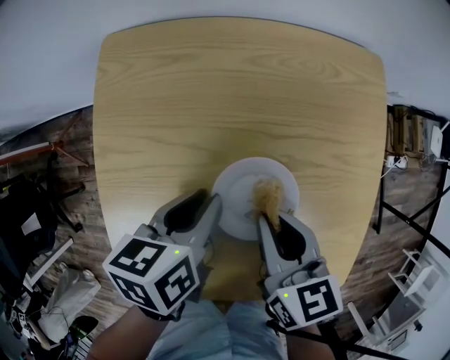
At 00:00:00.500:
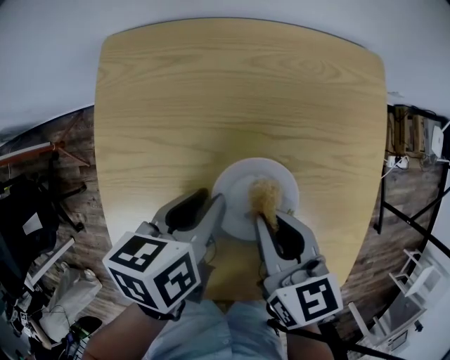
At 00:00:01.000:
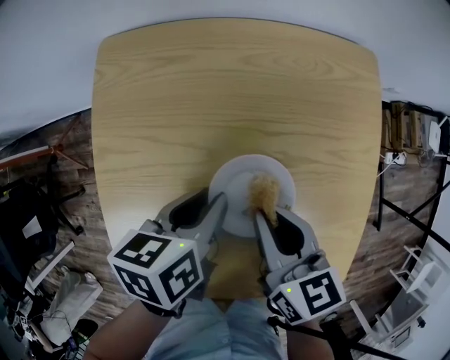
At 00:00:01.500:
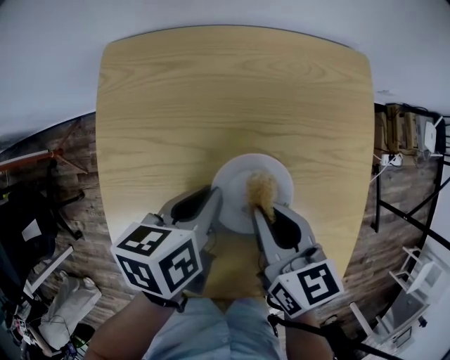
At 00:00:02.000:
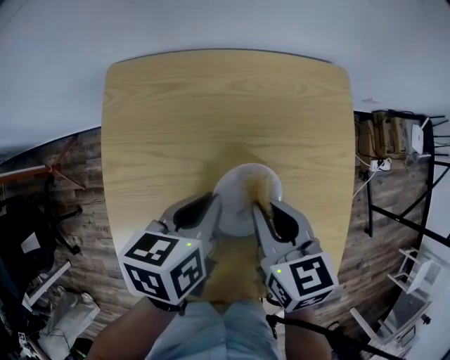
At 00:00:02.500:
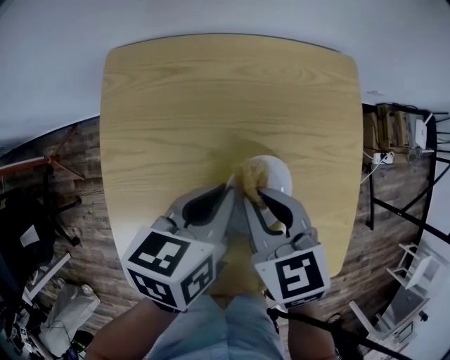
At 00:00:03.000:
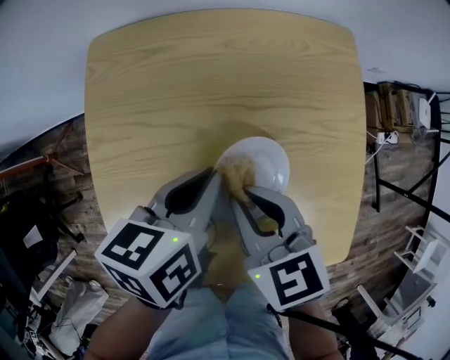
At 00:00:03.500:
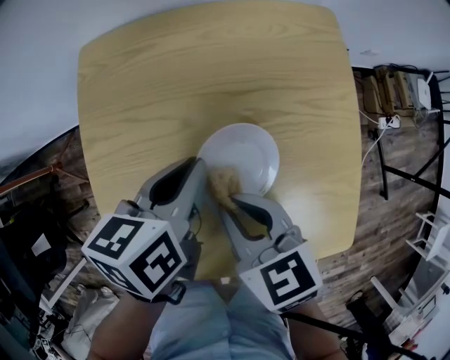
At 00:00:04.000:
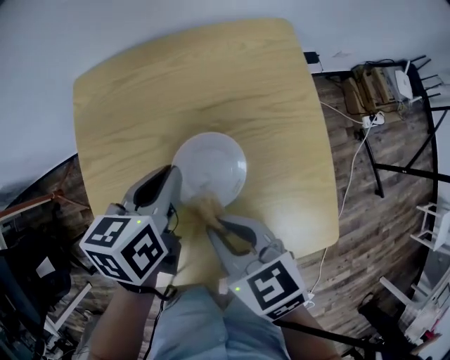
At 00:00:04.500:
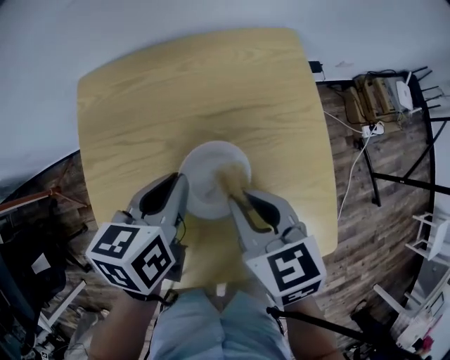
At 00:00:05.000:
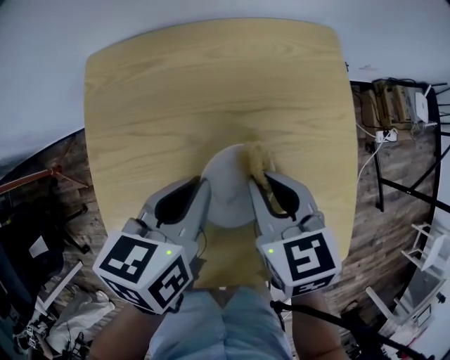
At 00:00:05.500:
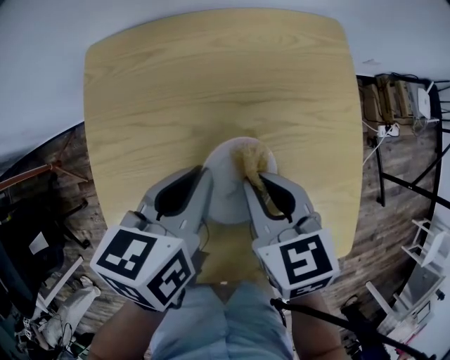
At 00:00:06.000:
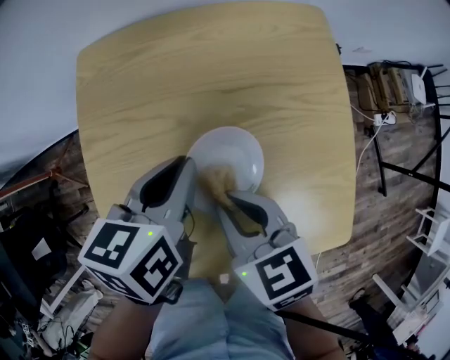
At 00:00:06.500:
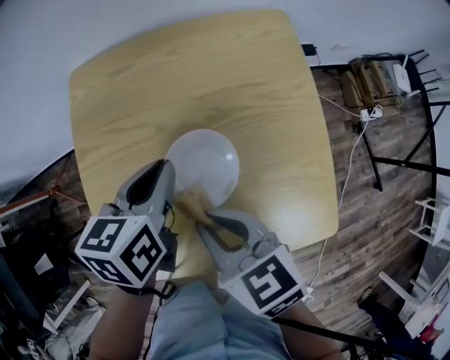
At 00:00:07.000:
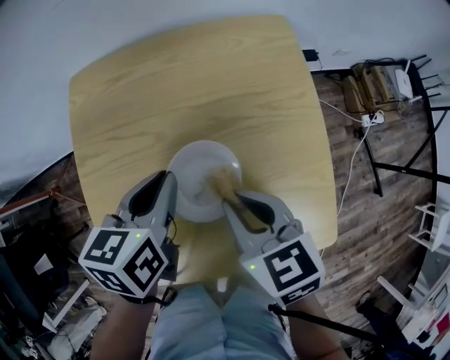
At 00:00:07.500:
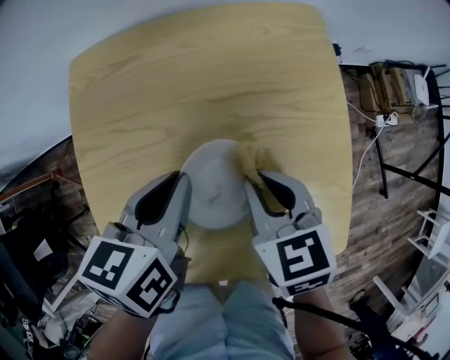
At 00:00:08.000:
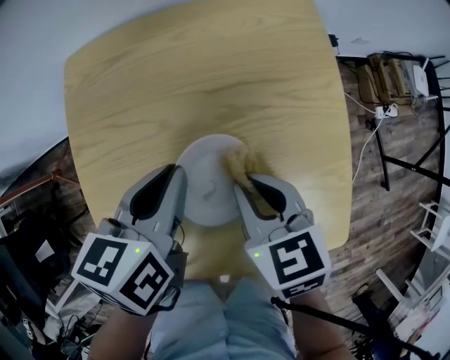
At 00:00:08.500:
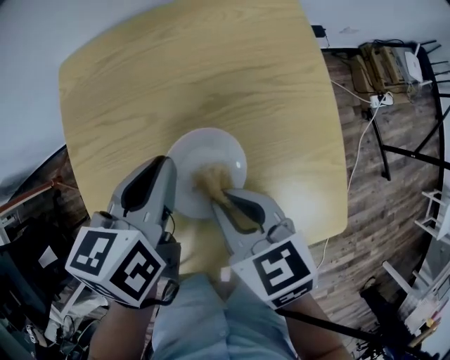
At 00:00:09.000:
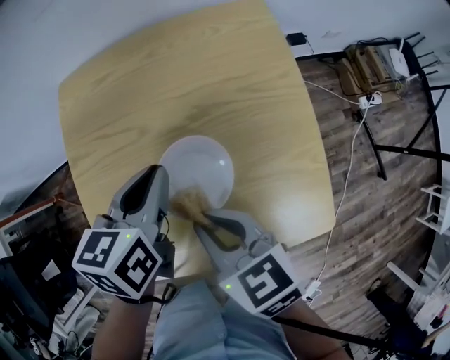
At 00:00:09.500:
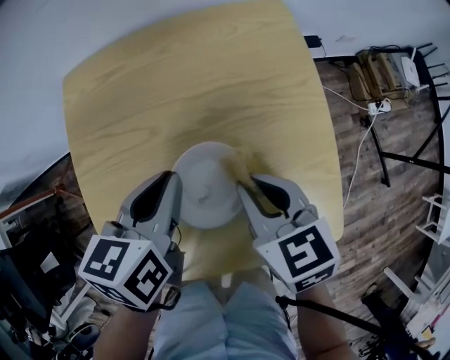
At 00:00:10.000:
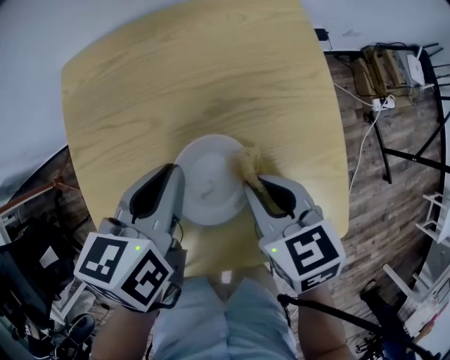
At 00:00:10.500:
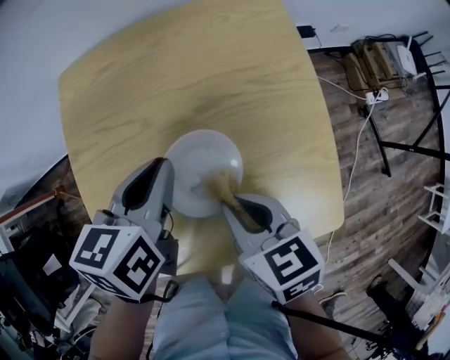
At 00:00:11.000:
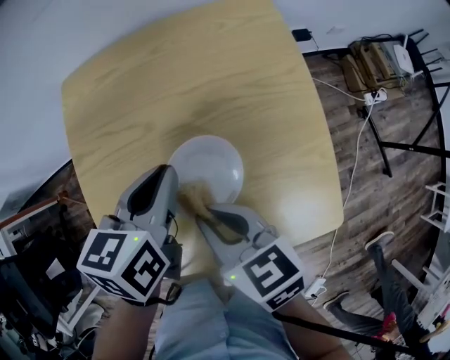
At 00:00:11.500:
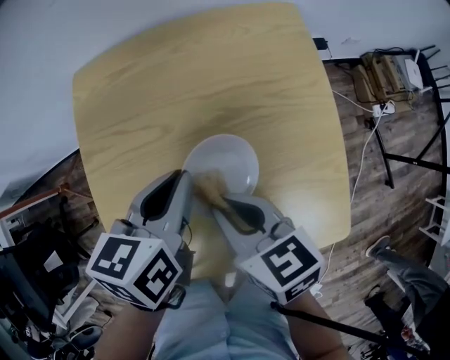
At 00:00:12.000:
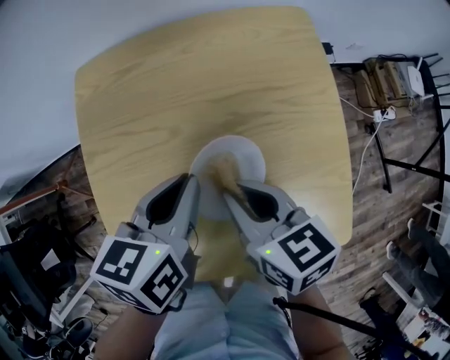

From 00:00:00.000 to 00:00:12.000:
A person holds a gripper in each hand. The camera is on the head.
From 00:00:00.000 to 00:00:02.000: The grippers stay close to where they were, moving slightly.
From 00:00:02.000 to 00:00:04.000: The right gripper shifts some 10 cm backward.
From 00:00:04.000 to 00:00:06.000: The right gripper reaches some 10 cm forward, then returns.
From 00:00:06.000 to 00:00:08.000: The right gripper shifts about 5 cm to the right, and moves some 5 cm forward and comes back.
From 00:00:10.000 to 00:00:12.000: The right gripper goes roughly 5 cm to the left.

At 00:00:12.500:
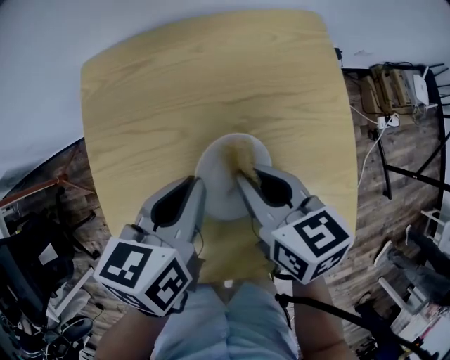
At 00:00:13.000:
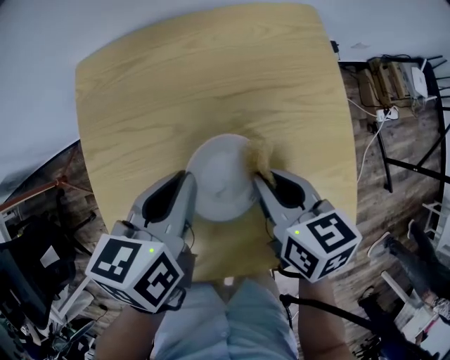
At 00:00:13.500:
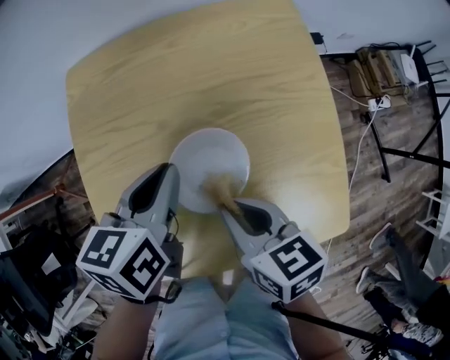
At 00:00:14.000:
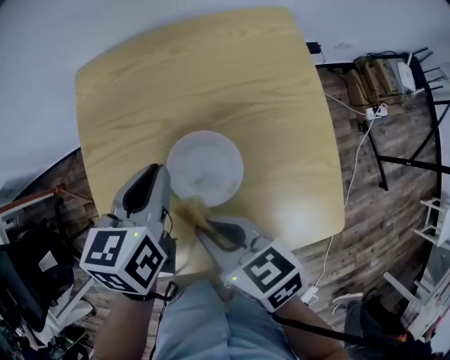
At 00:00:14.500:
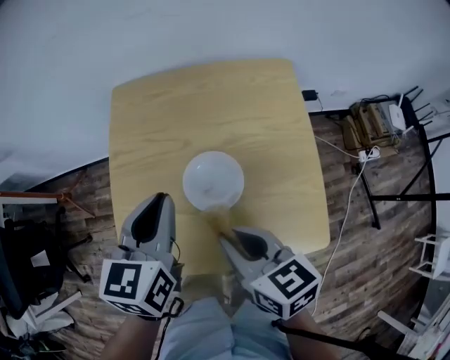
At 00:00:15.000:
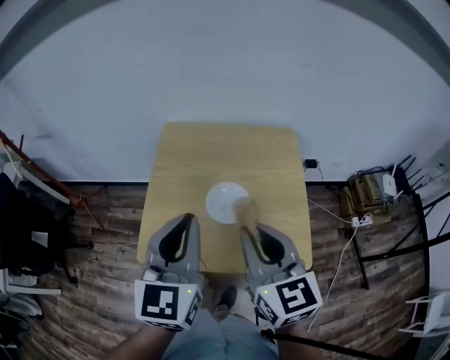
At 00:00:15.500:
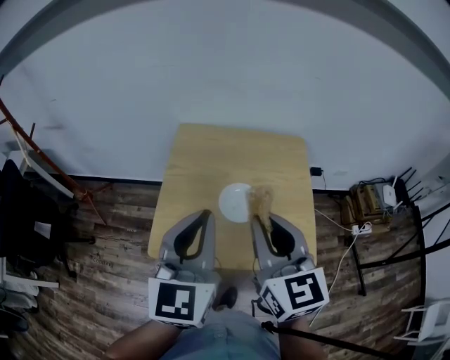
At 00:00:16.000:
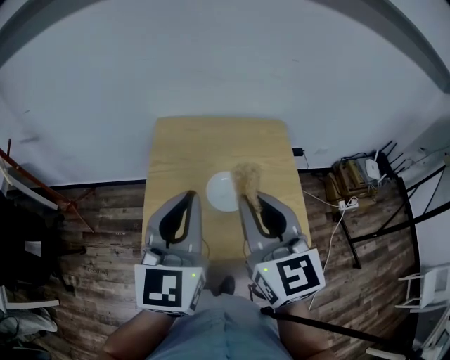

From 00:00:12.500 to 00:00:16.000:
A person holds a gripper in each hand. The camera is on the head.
From 00:00:12.500 to 00:00:14.500: The left gripper heads upward and backward, covering some 10 cm, and turns by about 20 degrees; the right gripper heads backward and upward, covering some 15 cm.
From 00:00:14.500 to 00:00:16.000: The left gripper shifts about 20 cm upward and backward, and changes its angle by some 30 degrees, while the right gripper shifts roughly 20 cm upward, and rotates some 40 degrees.

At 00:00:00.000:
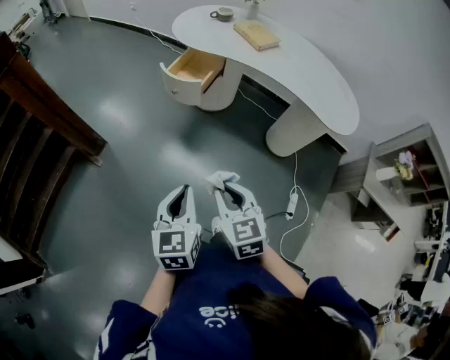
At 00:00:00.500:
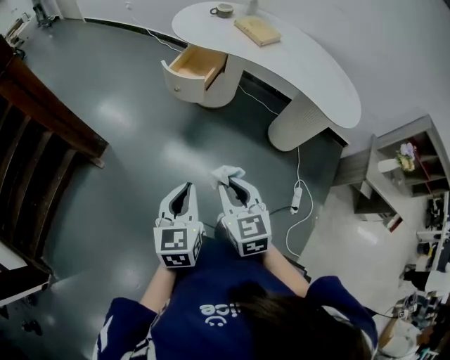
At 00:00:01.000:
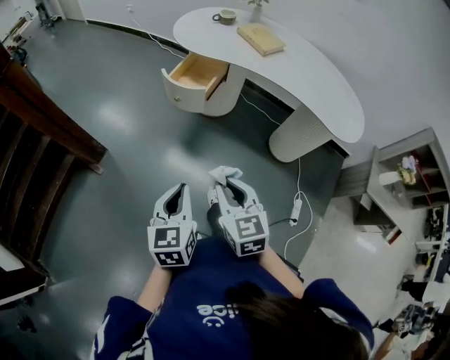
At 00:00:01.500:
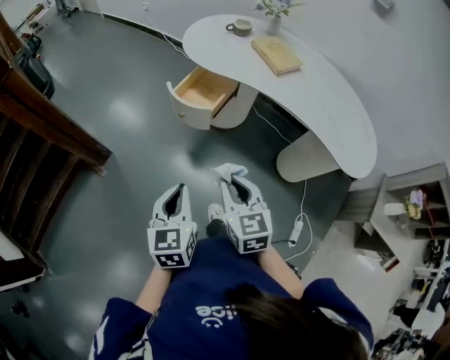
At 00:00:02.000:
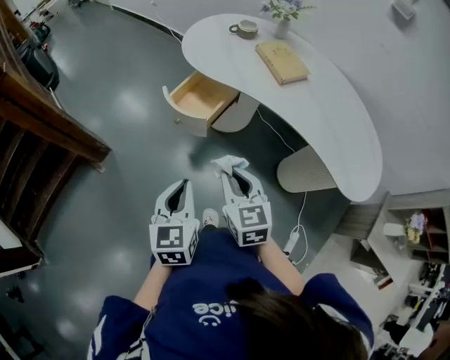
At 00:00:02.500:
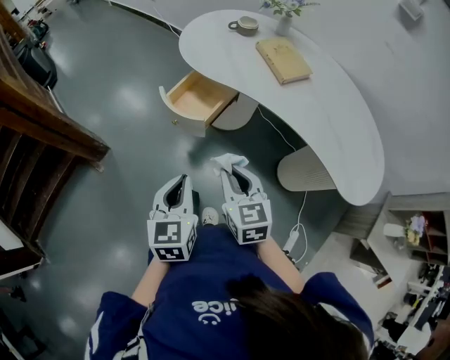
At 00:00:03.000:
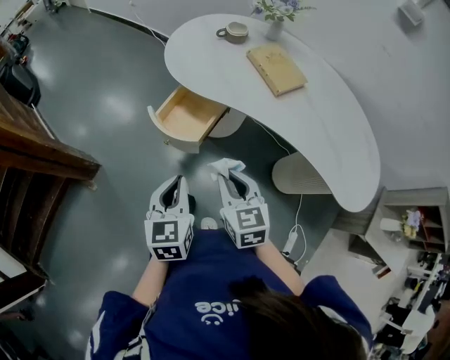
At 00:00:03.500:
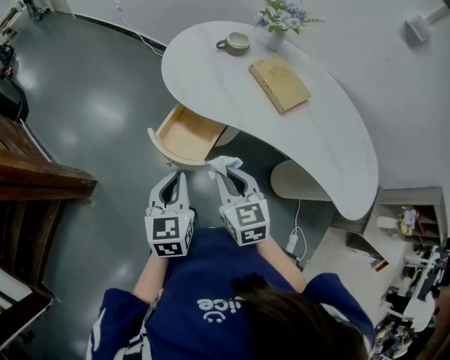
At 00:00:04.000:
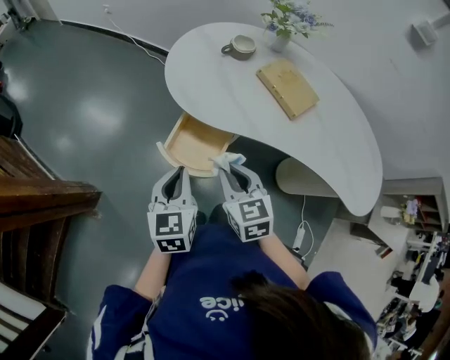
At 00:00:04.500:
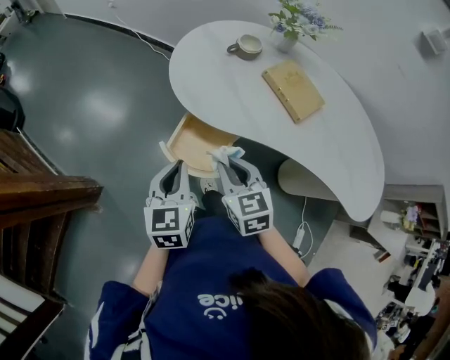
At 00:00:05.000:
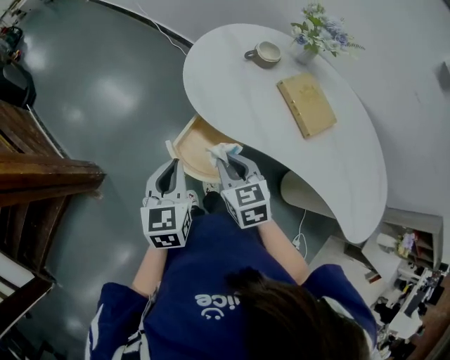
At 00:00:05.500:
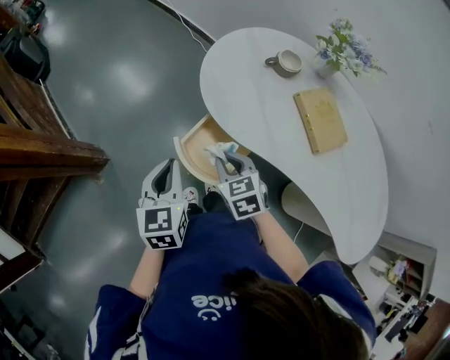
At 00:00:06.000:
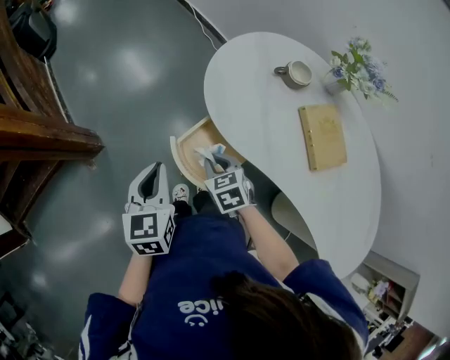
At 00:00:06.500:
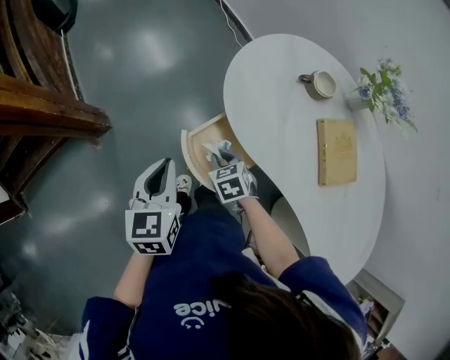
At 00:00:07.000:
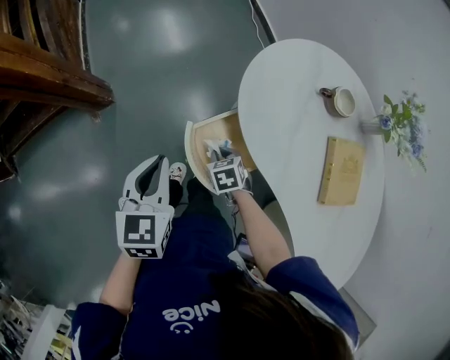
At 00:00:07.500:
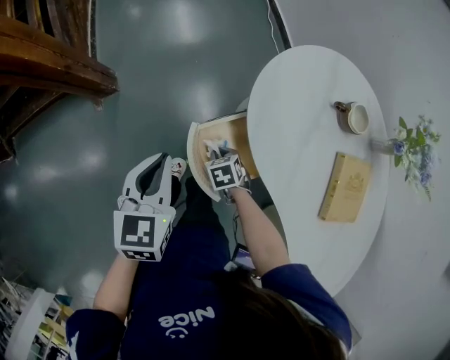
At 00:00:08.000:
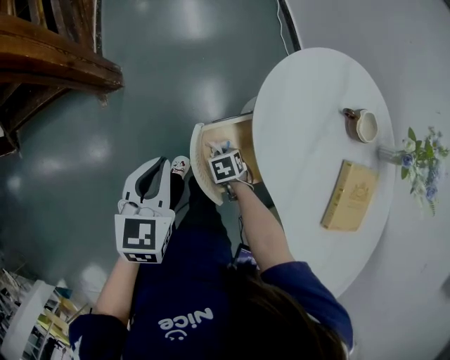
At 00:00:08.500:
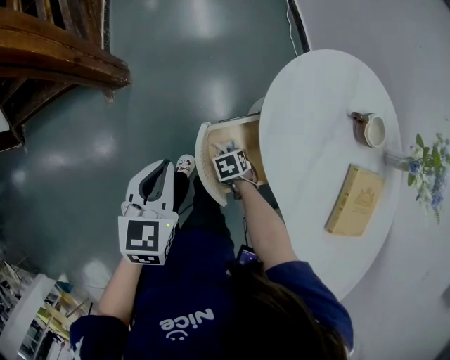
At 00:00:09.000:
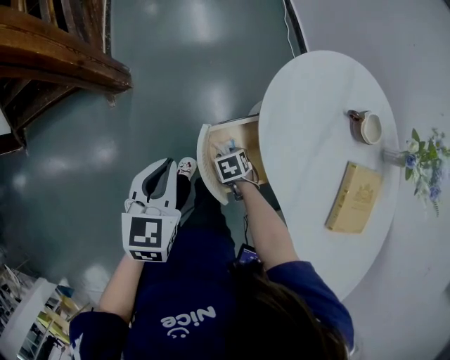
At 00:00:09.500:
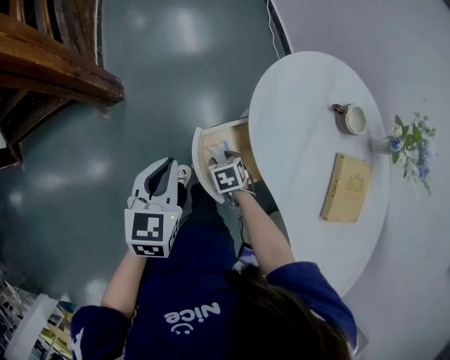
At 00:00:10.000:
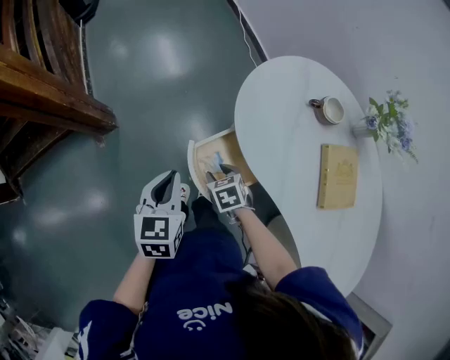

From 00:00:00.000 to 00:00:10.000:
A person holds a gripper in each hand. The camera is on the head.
From 00:00:00.000 to 00:00:02.000: The grippers both shift forward by roughly 25 cm.
From 00:00:02.000 to 00:00:04.000: Both grippers move forward, some 30 cm.
From 00:00:04.000 to 00:00:06.000: The right gripper shifts some 10 cm downward, and changes its angle by approximately 30 degrees; the left gripper changes place by approximately 5 cm, and changes its angle by approximately 30 degrees.
From 00:00:06.000 to 00:00:08.000: The left gripper changes place by about 5 cm. The right gripper heads downward, covering some 20 cm, and turns by approximately 30 degrees.
From 00:00:08.000 to 00:00:10.000: The right gripper heads upward, covering about 15 cm, and opens.

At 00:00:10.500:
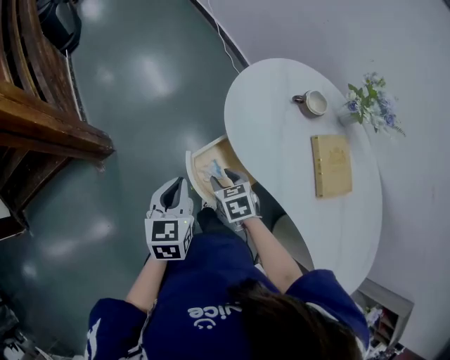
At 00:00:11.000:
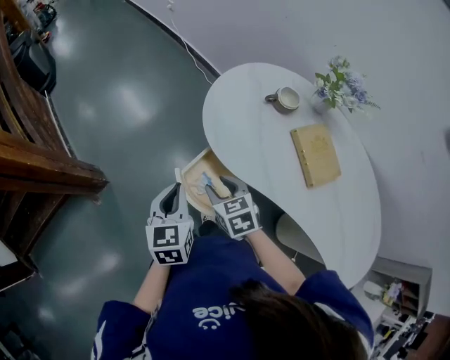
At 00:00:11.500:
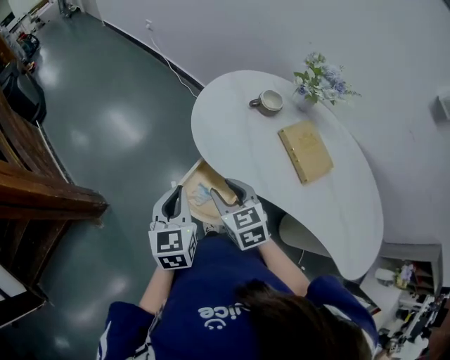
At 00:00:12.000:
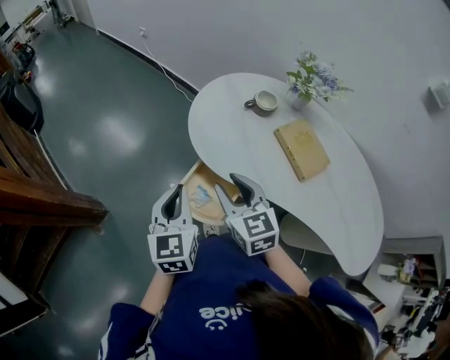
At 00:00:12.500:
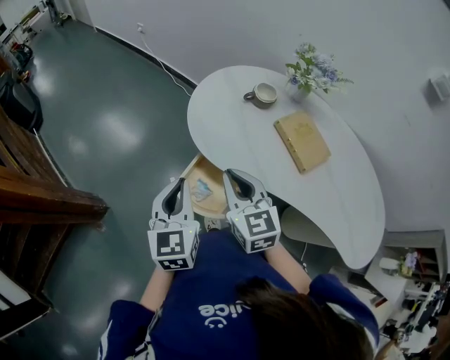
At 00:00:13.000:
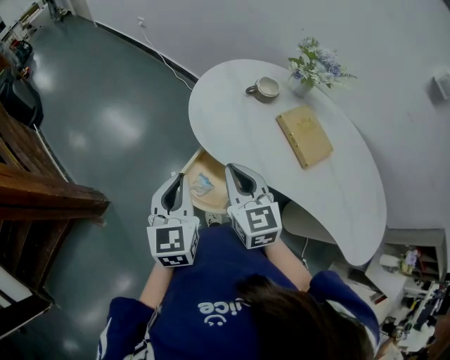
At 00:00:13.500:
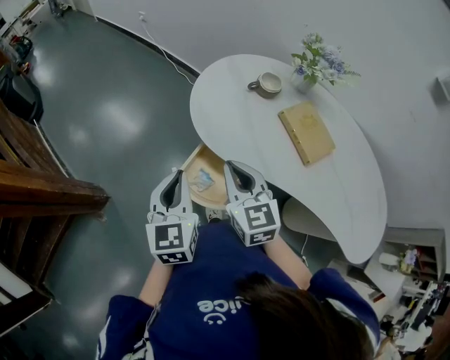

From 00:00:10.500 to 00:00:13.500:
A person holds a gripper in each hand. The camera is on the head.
From 00:00:10.500 to 00:00:12.000: The right gripper moves upward, approximately 20 cm, and angles its fingers upward, by about 30 degrees. The left gripper travels upward by approximately 10 cm, and turns by some 20 degrees.
From 00:00:12.000 to 00:00:13.500: The right gripper closes its fingers.
